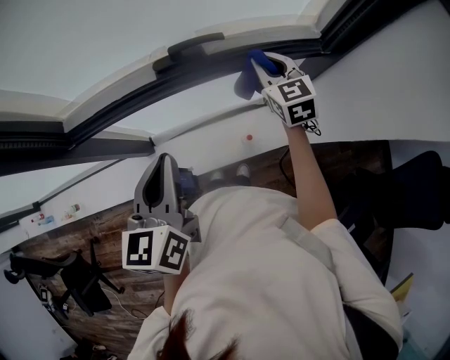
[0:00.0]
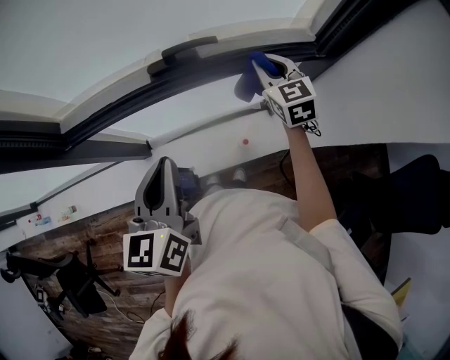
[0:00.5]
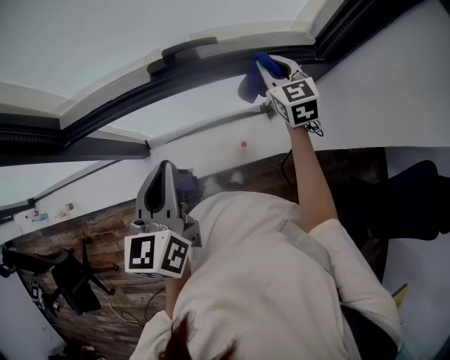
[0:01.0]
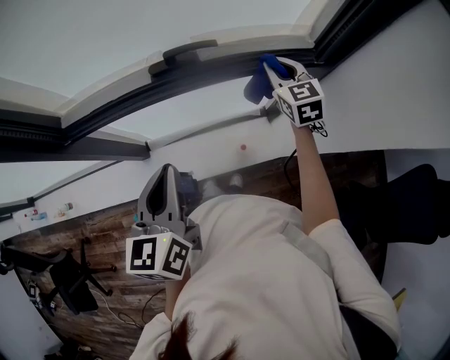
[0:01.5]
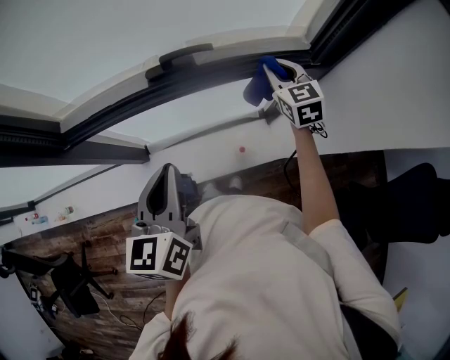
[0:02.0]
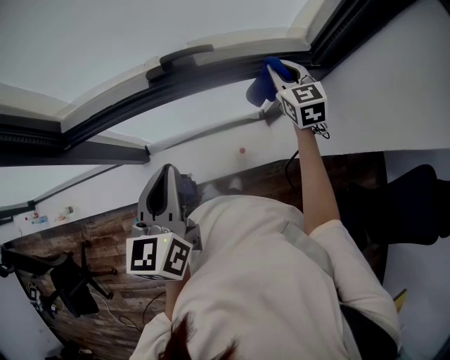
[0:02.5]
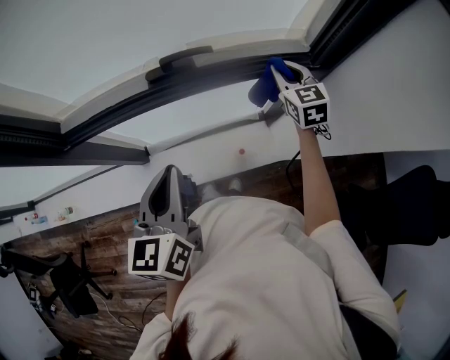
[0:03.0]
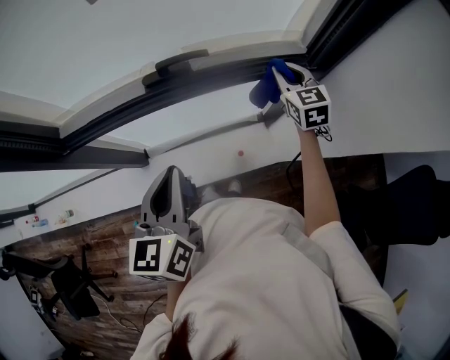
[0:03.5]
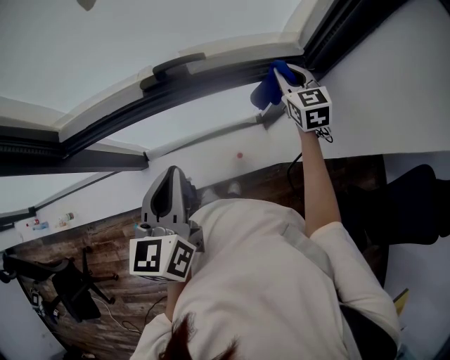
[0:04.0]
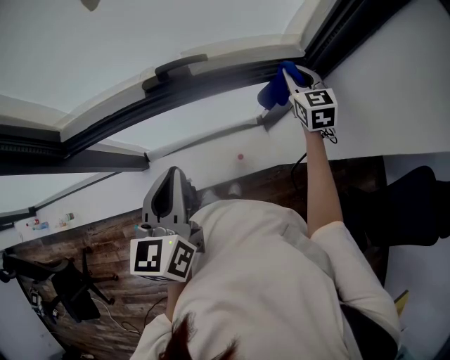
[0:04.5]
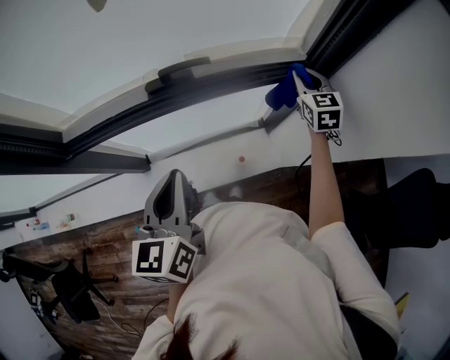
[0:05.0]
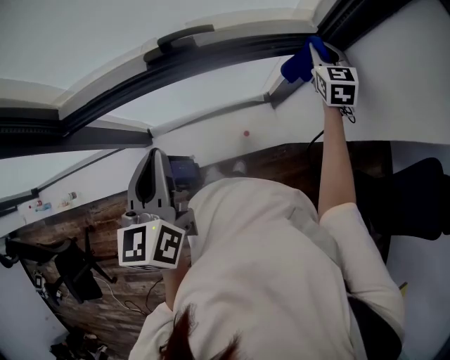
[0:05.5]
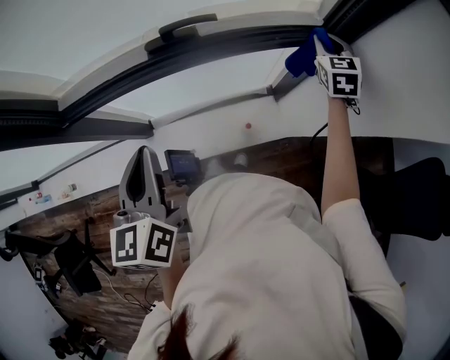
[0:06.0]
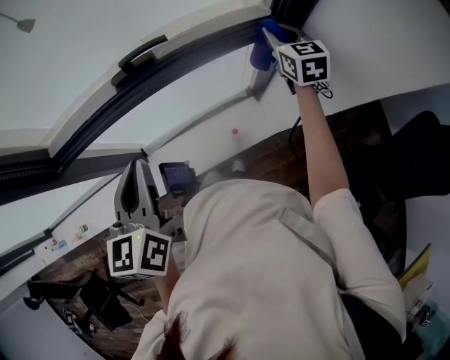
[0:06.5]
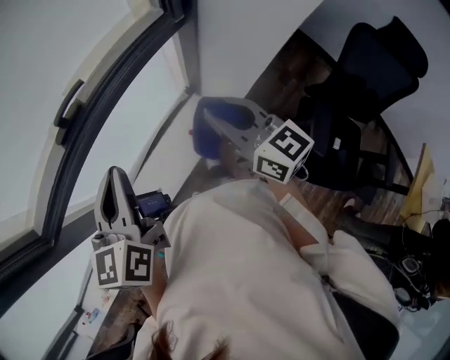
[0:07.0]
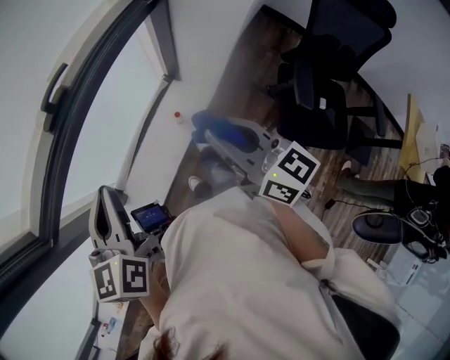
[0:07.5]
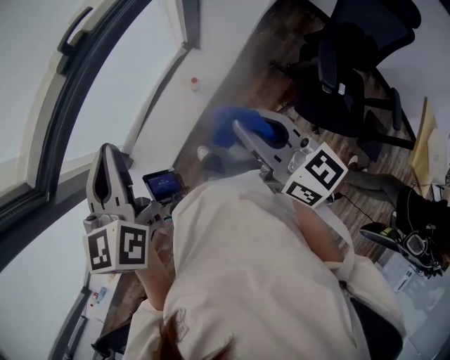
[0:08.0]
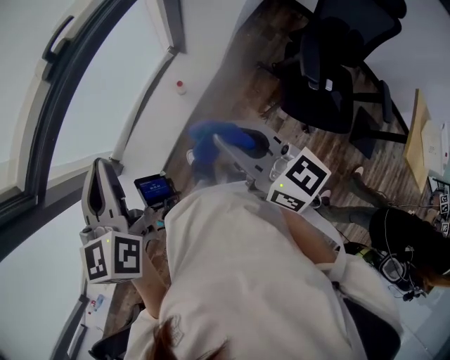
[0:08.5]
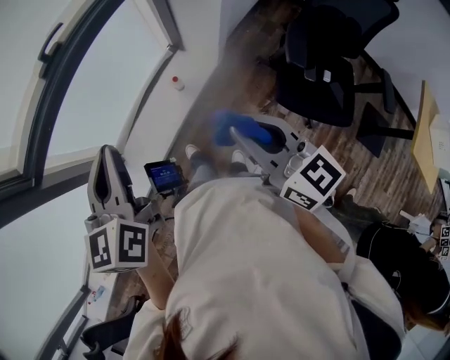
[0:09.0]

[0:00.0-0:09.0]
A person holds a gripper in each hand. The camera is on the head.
0:00.0 to 0:02.0: The right gripper shifts approximately 5 cm to the right.
0:02.0 to 0:04.5: The right gripper heads to the right, covering approximately 5 cm.
0:04.5 to 0:07.0: The right gripper shifts approximately 25 cm backward, and changes its angle by about 40 degrees, while the left gripper travels to the left and back again, about 5 cm each way, and turns by about 30 degrees.
0:07.0 to 0:09.0: The right gripper is displaced backward by about 35 cm; the left gripper shifts about 20 cm backward.

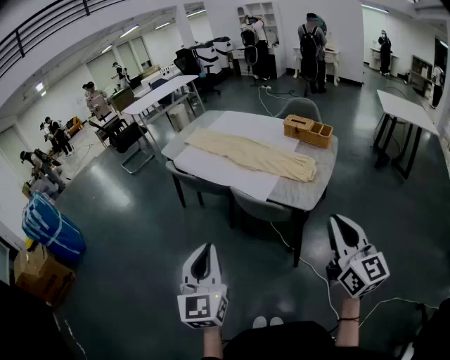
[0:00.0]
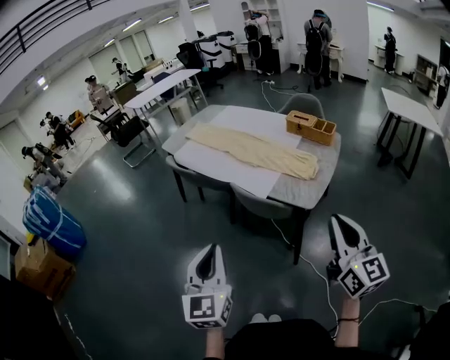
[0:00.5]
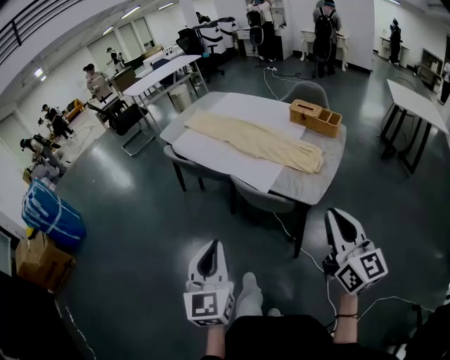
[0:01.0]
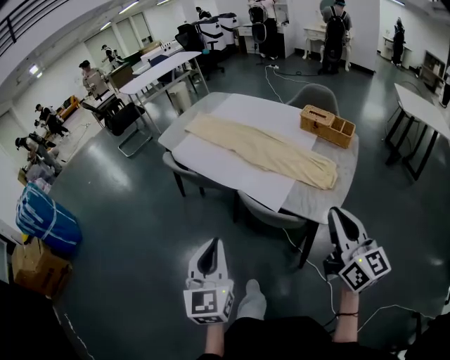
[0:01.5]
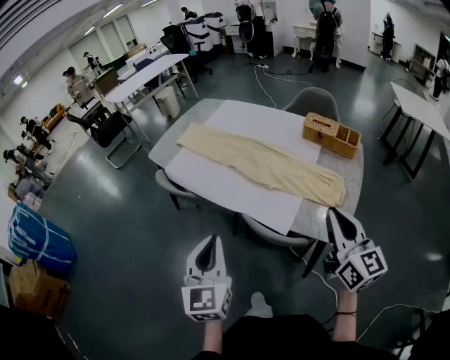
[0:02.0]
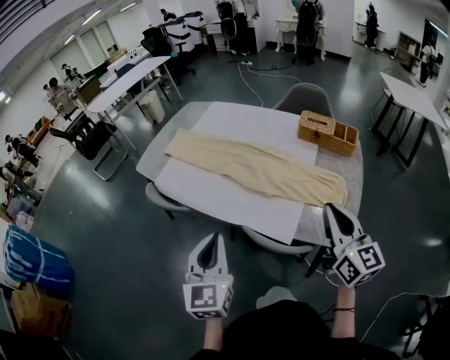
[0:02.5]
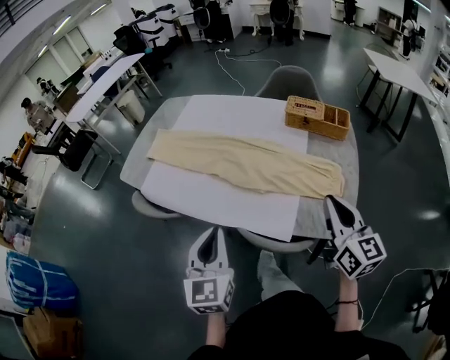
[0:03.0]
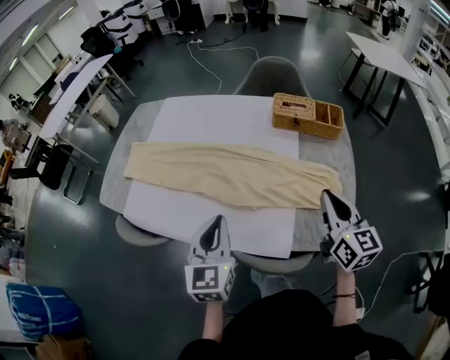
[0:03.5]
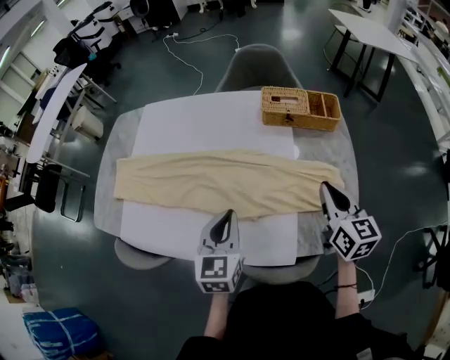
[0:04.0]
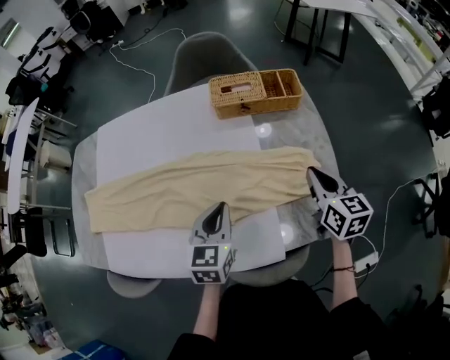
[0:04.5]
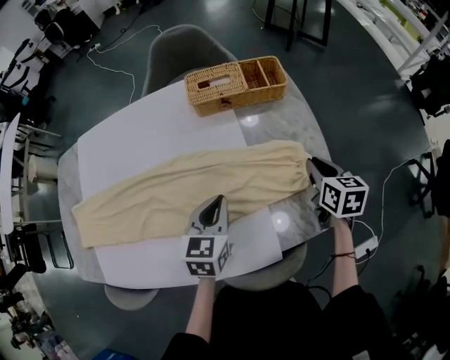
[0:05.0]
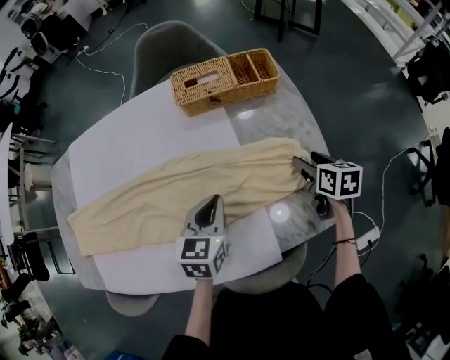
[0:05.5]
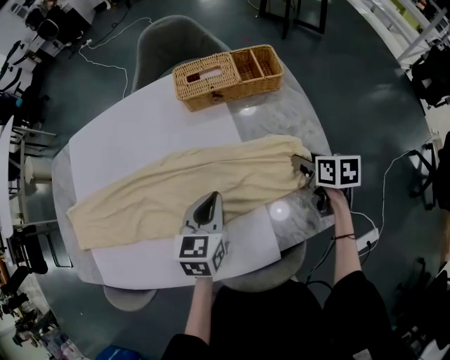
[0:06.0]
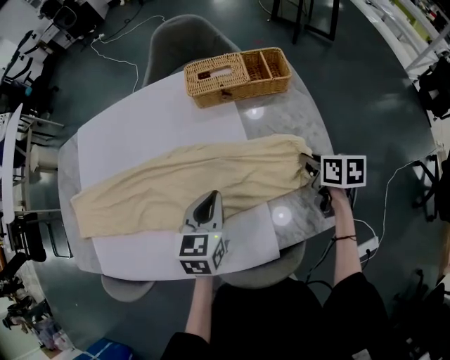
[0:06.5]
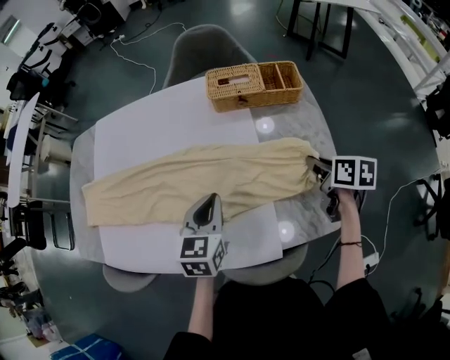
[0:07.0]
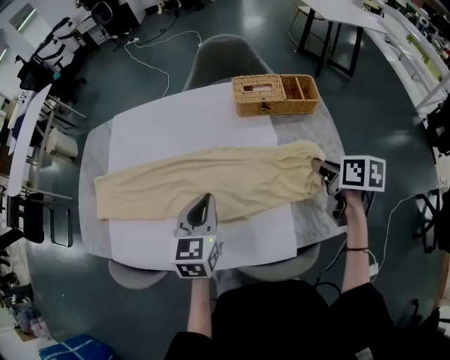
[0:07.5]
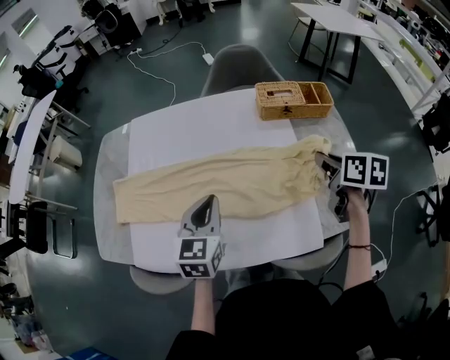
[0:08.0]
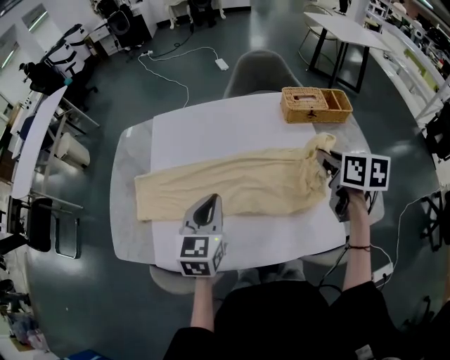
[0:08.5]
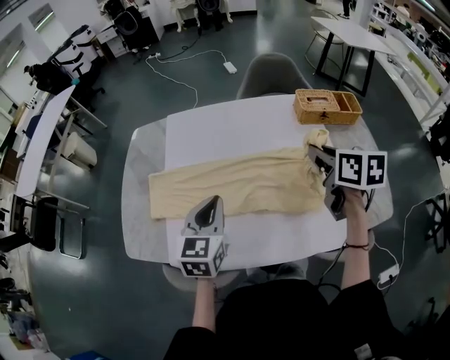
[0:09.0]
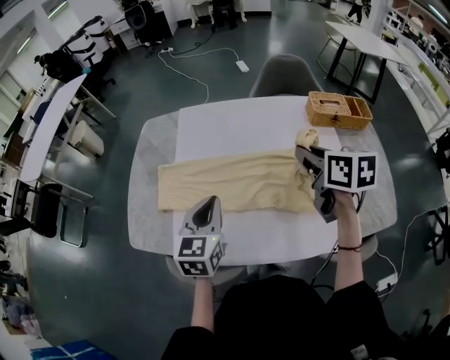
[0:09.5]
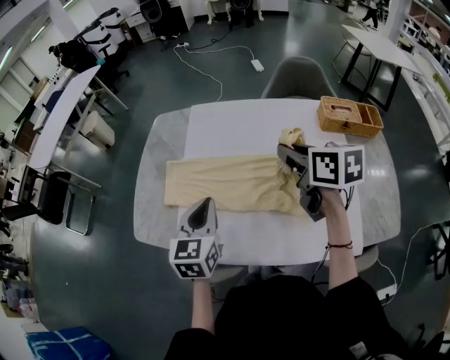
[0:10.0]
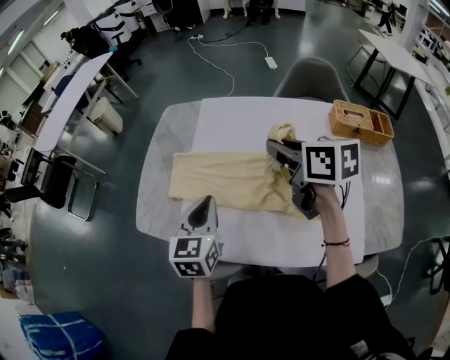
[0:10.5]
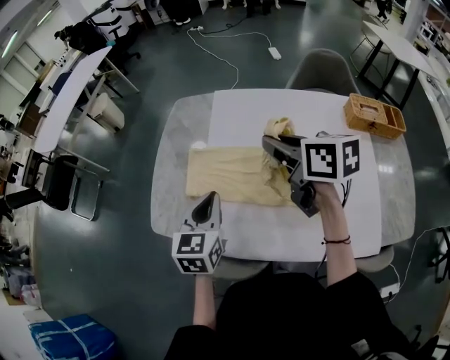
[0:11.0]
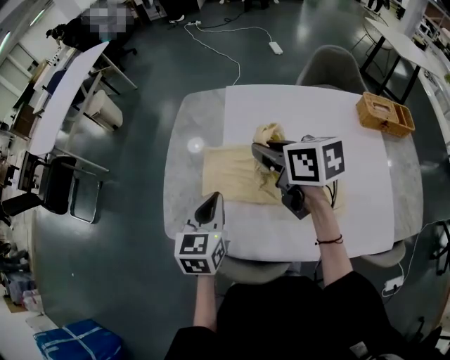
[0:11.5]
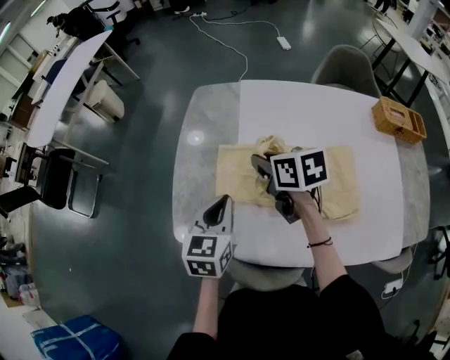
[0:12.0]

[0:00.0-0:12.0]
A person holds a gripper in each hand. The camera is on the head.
0:00.0 to 0:02.0: The grippers both shift forward by roughly 30 cm.
0:02.0 to 0:04.0: The right gripper ends up approximately 30 cm from where it was, and rotates some 30 degrees. Meanwhile the left gripper changes place by about 35 cm, and rotates roughly 40 degrees.
0:04.0 to 0:06.0: The right gripper is displaced downward and to the right by about 25 cm, points its fingers roughly 30 degrees further downward, and opens up; the left gripper heads forward, downward and to the right, covering approximately 15 cm, and changes its angle by some 30 degrees.
0:06.0 to 0:08.0: The left gripper is displaced to the left and upward by about 25 cm. Meanwhile the right gripper travels upward and to the left by some 25 cm, and closes up.
0:08.0 to 0:10.0: The right gripper goes roughly 35 cm to the left, and changes its angle by approximately 30 degrees, while the left gripper moves to the left, approximately 20 cm.
0:10.0 to 0:12.0: The right gripper goes roughly 30 cm to the left, forward and downward. Meanwhile the left gripper heads to the left and forward, covering some 20 cm.

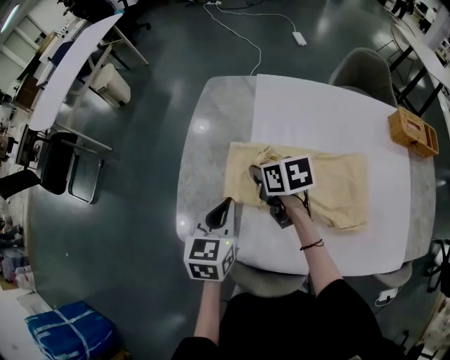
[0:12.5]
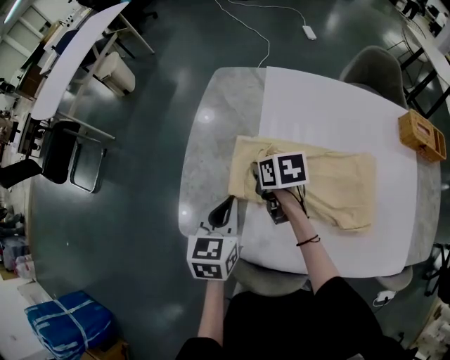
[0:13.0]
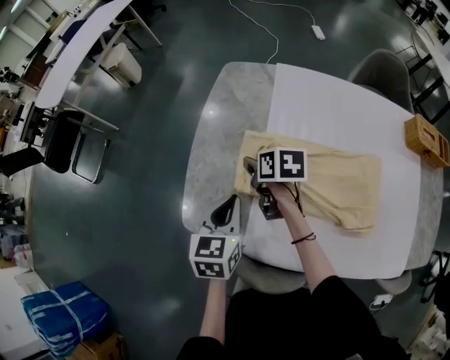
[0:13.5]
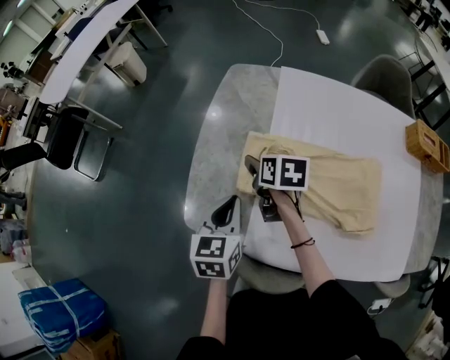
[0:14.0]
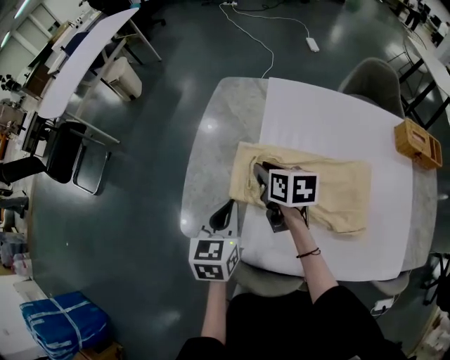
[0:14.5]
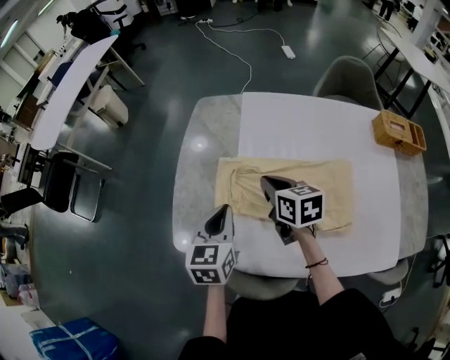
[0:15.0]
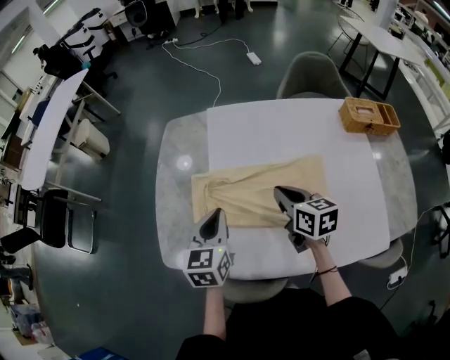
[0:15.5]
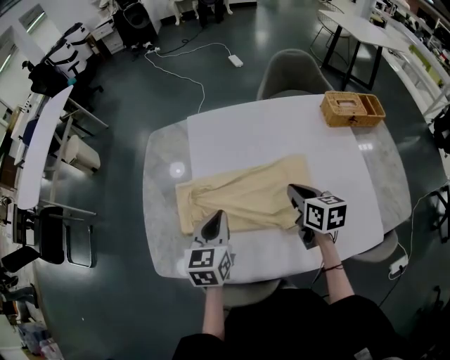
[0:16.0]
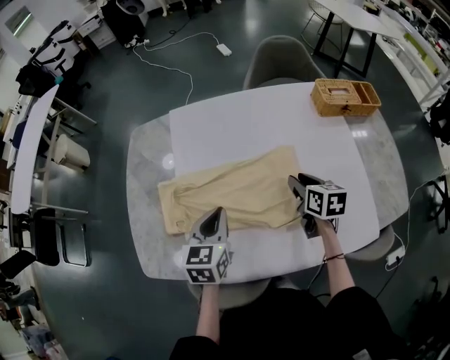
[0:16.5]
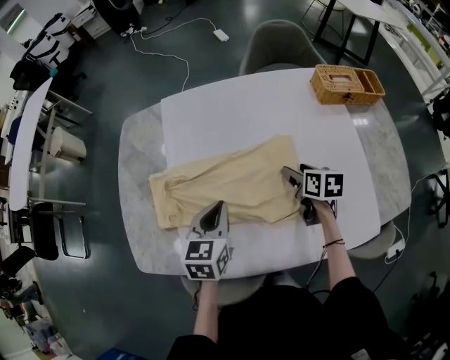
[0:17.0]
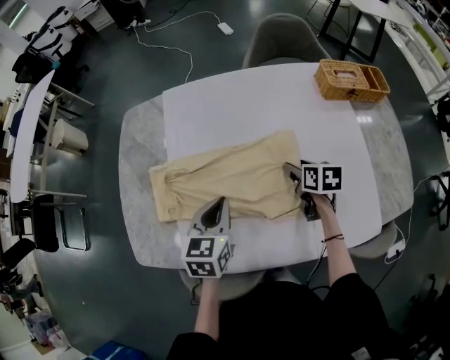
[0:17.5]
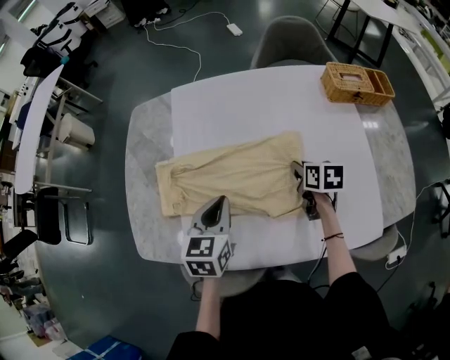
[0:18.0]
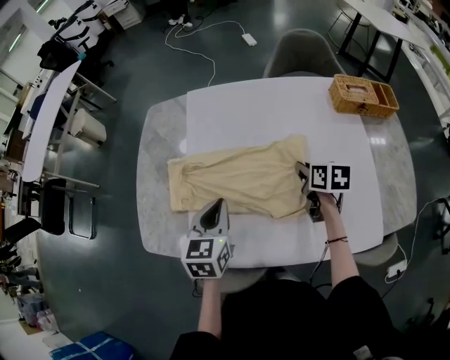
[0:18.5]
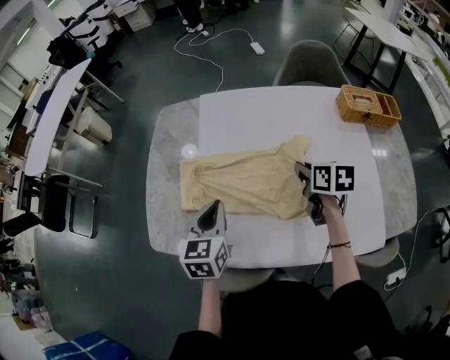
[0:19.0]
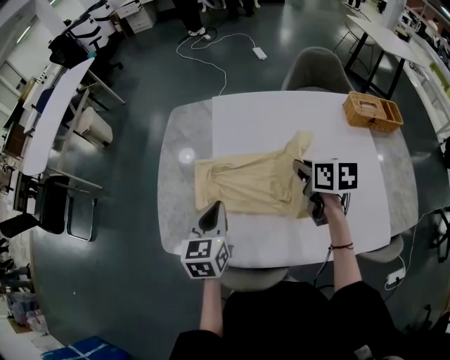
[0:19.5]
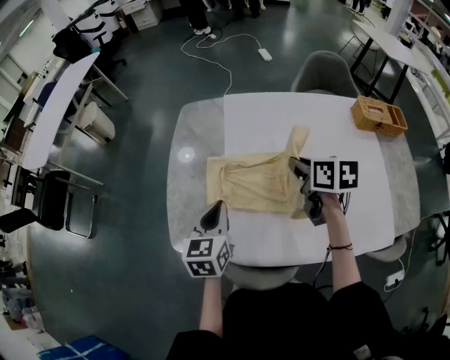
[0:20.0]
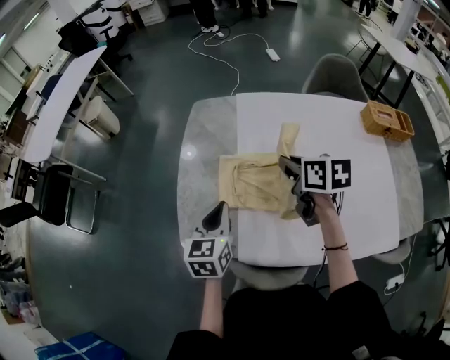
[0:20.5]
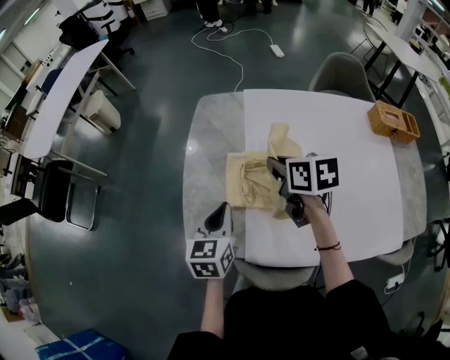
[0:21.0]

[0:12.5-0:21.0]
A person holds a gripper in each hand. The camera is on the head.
0:12.5 to 0:14.5: The right gripper opens and closes again.
0:14.5 to 0:16.5: The left gripper shifts by roughly 20 cm. Meanwhile the right gripper changes place by approximately 35 cm, turns by about 30 degrees, and closes and opens again.
0:16.5 to 0:19.0: The grippers both shift to the left by roughly 5 cm. The right gripper opens, then closes again.
0:19.0 to 0:21.0: The left gripper travels to the left by some 15 cm. Meanwhile the right gripper shifts about 25 cm to the left.
